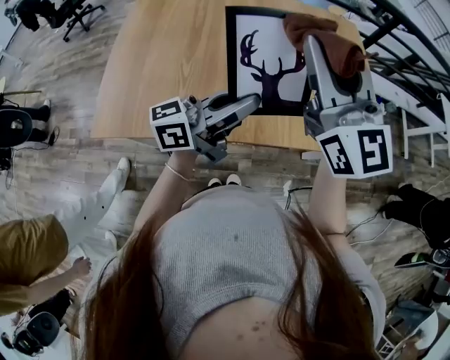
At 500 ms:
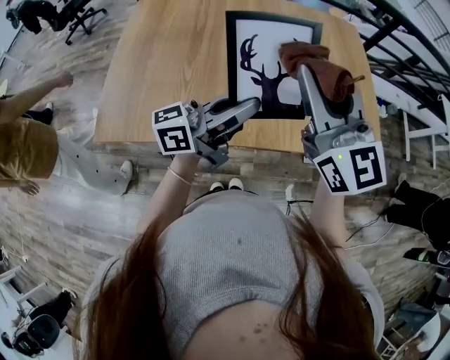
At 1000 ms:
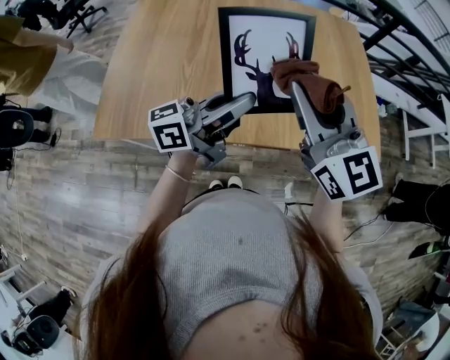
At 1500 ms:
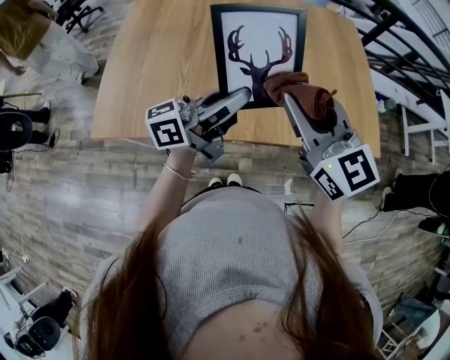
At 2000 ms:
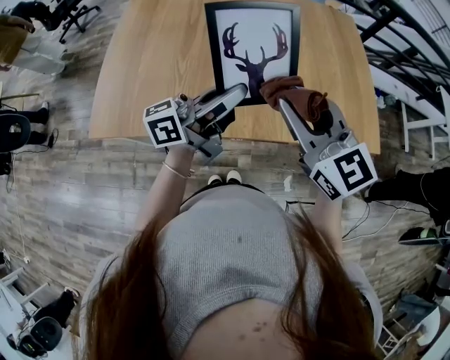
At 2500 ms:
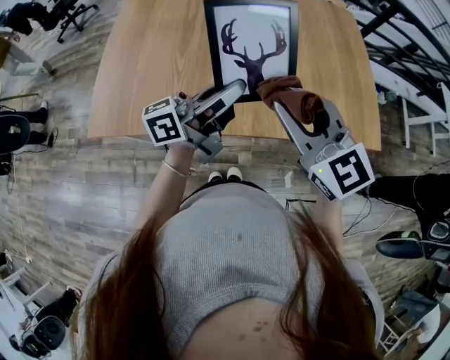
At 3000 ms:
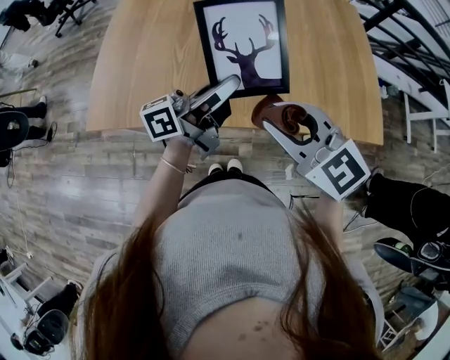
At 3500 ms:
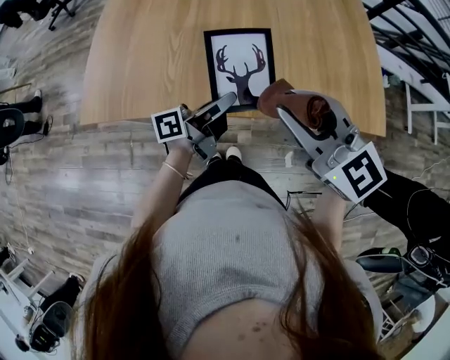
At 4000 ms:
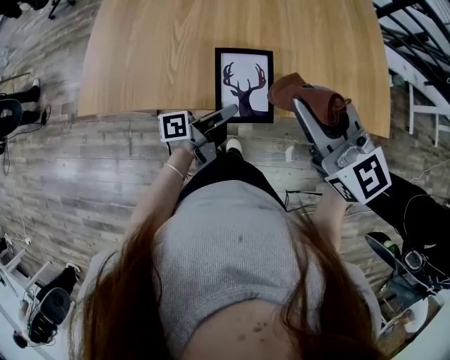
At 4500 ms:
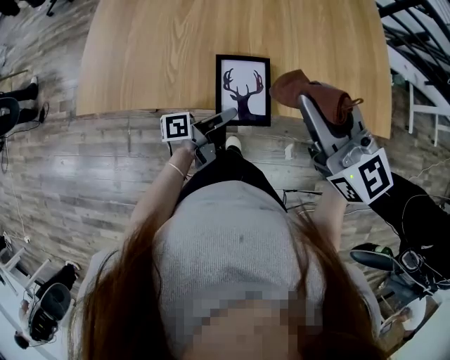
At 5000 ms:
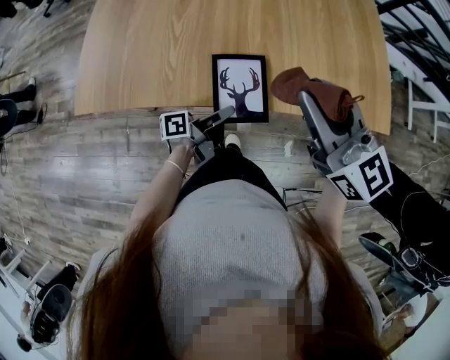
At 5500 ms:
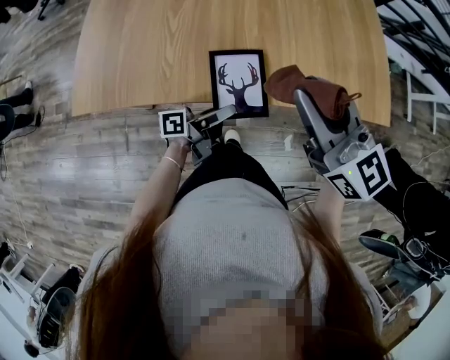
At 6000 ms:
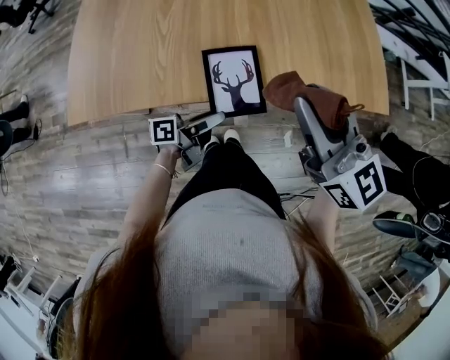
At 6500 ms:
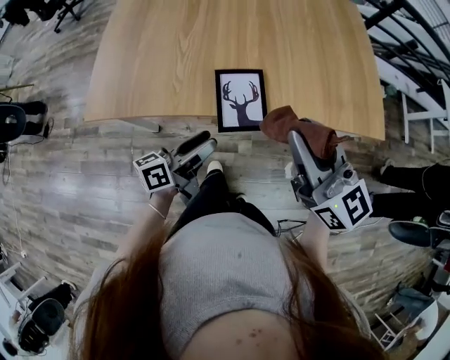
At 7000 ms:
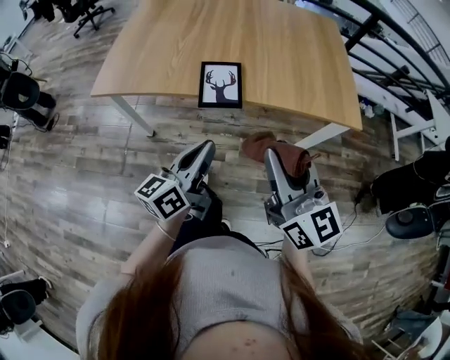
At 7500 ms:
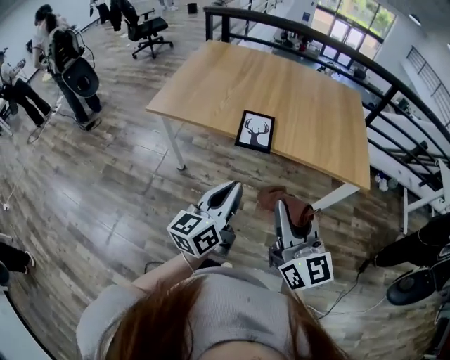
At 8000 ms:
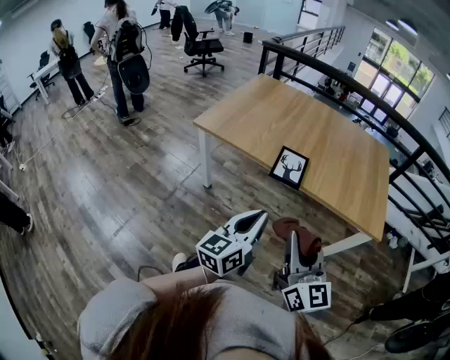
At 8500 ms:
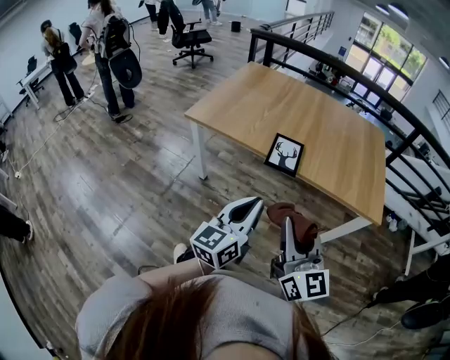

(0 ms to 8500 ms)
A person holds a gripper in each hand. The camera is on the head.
0 ms - 2000 ms: The right gripper travels downward and backward by approximately 15 cm, and changes its angle by approximately 30 degrees.
2000 ms - 4000 ms: The left gripper moves downward, some 20 cm, and turns by approximately 40 degrees.
4000 ms - 6500 ms: The left gripper heads backward and to the left, covering some 10 cm, goes downward and returns, roughly 5 cm each way, changes its angle by roughly 30 degrees, and opens. The right gripper shifts about 5 cm backward.
6500 ms - 8500 ms: The left gripper is displaced backward and upward by approximately 35 cm, swivels about 50 degrees, and closes; the right gripper shifts about 30 cm backward.

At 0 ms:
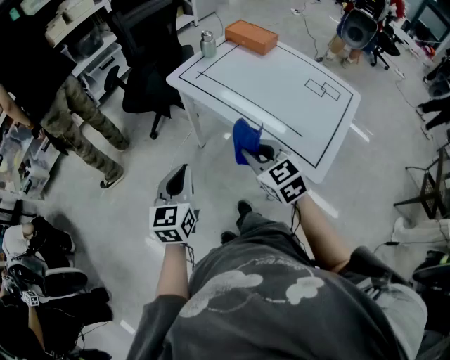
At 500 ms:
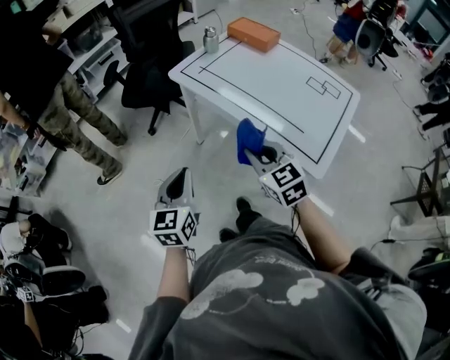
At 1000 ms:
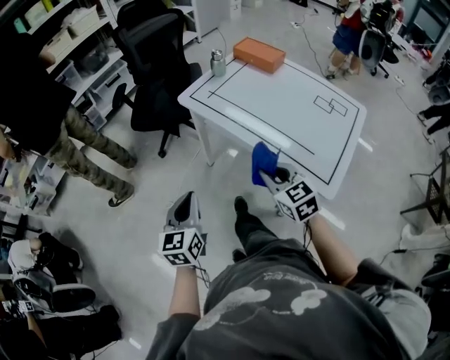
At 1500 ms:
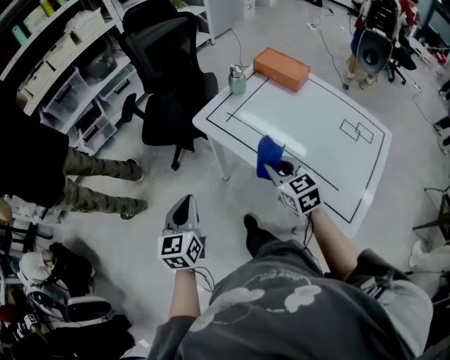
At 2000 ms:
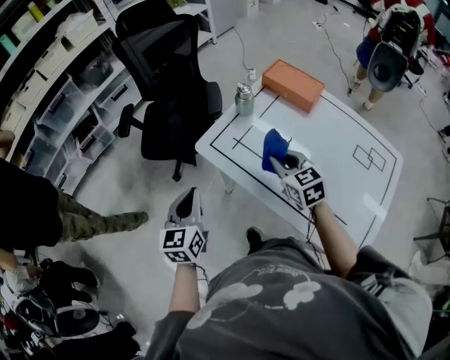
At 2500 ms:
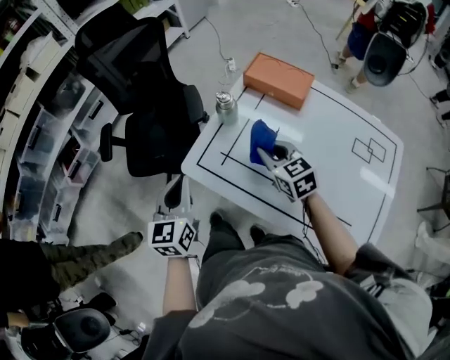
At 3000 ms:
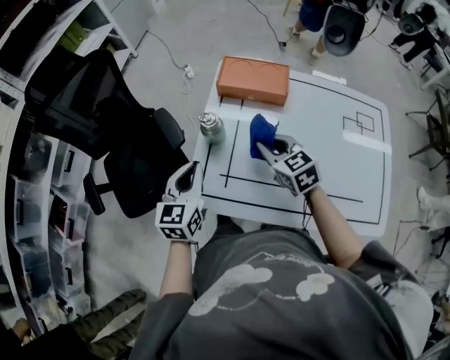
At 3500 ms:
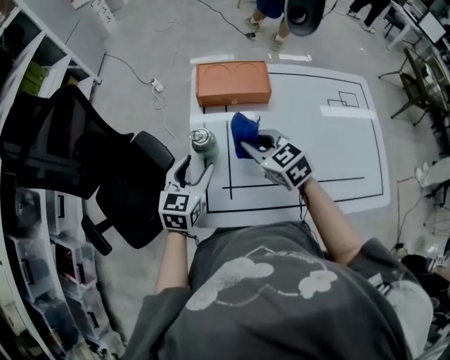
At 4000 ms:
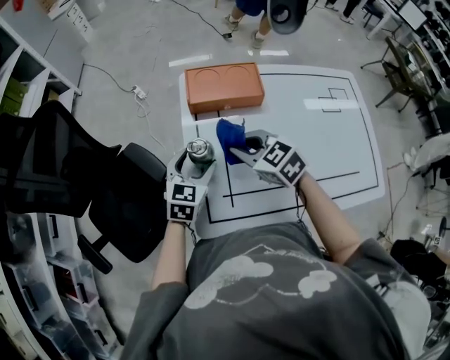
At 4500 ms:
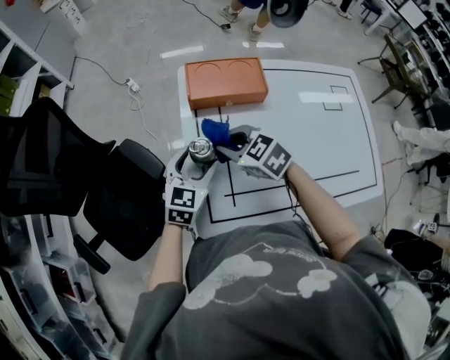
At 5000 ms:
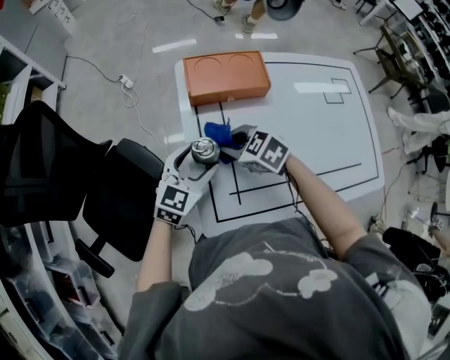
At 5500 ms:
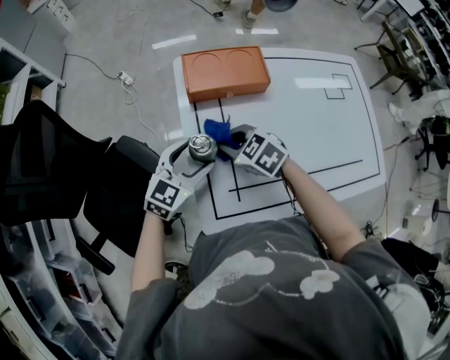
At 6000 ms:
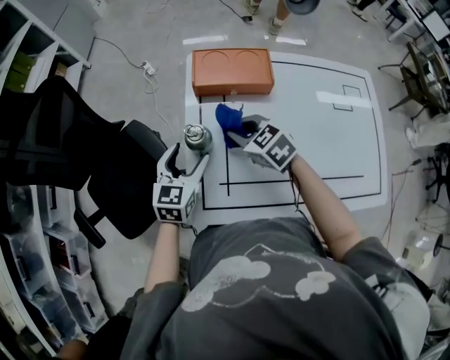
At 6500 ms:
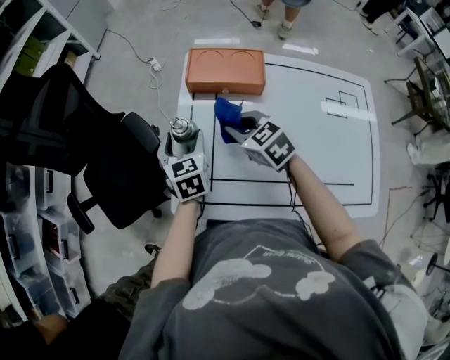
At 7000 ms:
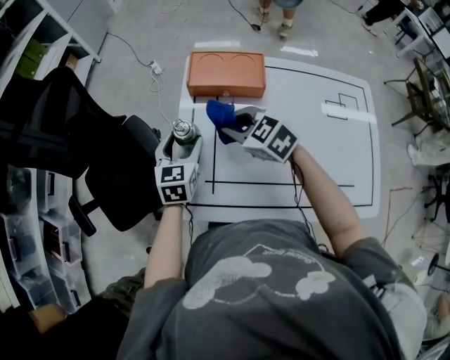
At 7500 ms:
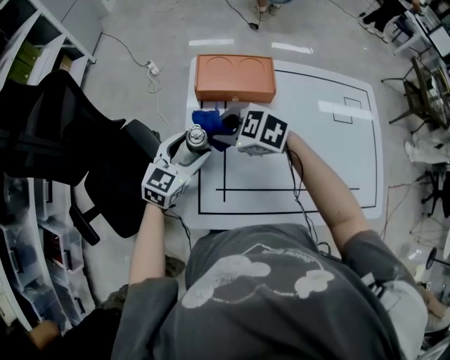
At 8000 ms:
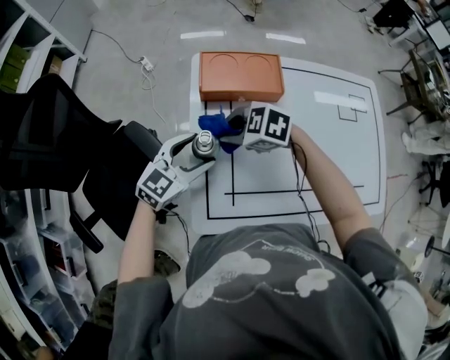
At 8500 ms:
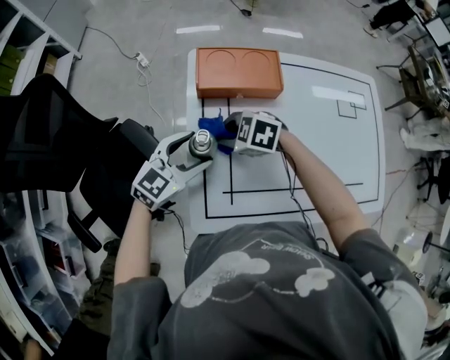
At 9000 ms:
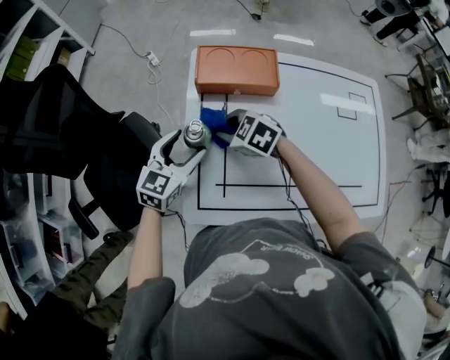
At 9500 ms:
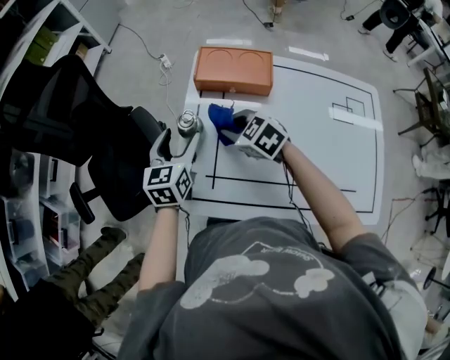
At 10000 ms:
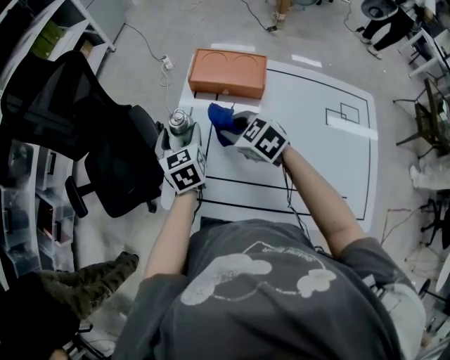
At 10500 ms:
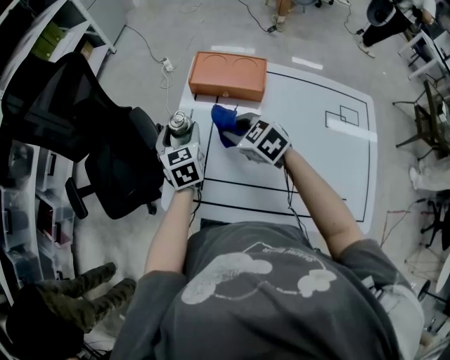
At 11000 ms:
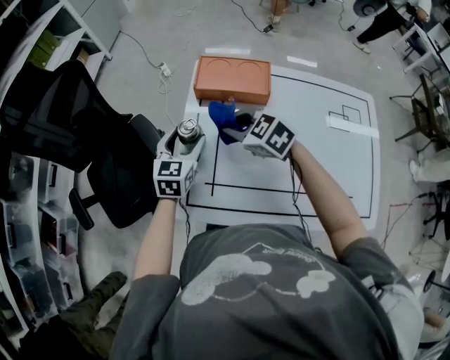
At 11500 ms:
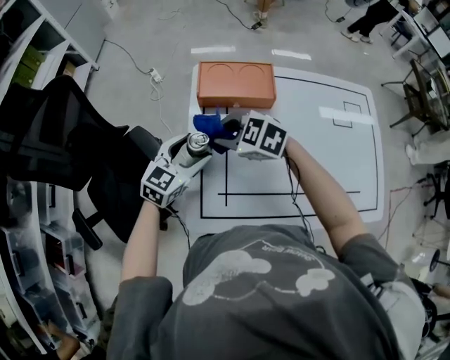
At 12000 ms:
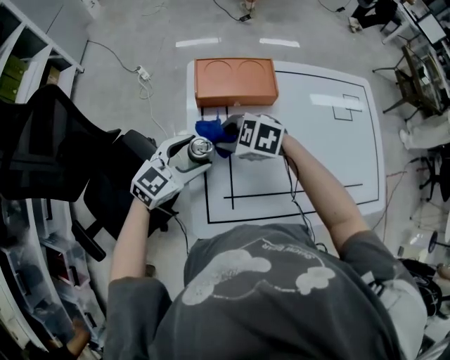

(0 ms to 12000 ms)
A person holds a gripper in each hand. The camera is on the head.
0 ms - 2000 ms: The grippers both shift forward by about 30 cm.
2000 ms - 4000 ms: The right gripper shifts by some 20 cm, and turns by approximately 20 degrees. Meanwhile the left gripper moves some 40 cm, changes its angle by roughly 60 degrees, and opens.
6000 ms - 8000 ms: The left gripper changes its angle by approximately 30 degrees. Meanwhile the right gripper ends up about 5 cm from where it was, and swivels approximately 30 degrees.
8000 ms - 10000 ms: The right gripper moves some 10 cm, while the left gripper swivels about 70 degrees.
10000 ms - 12000 ms: The left gripper swivels some 80 degrees, while the right gripper shifts by approximately 10 cm.

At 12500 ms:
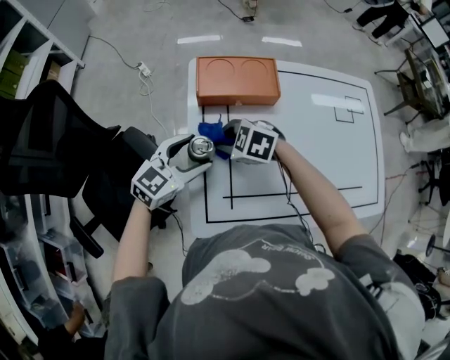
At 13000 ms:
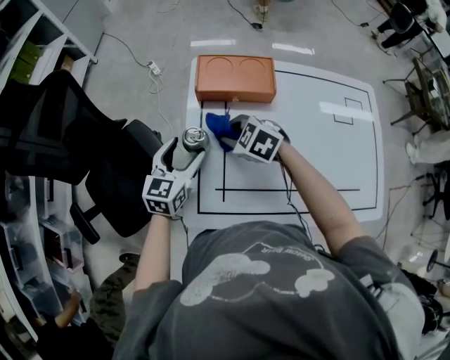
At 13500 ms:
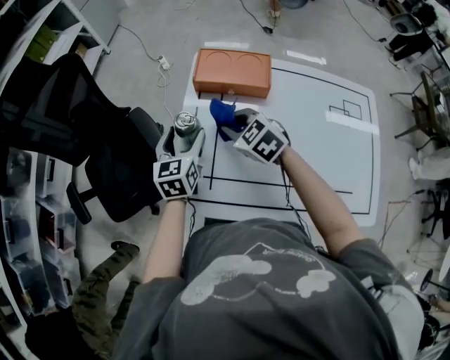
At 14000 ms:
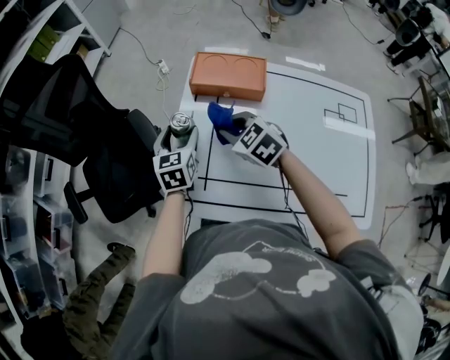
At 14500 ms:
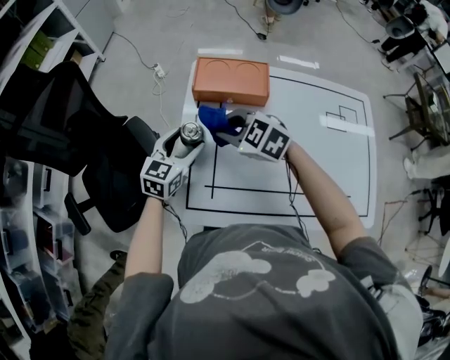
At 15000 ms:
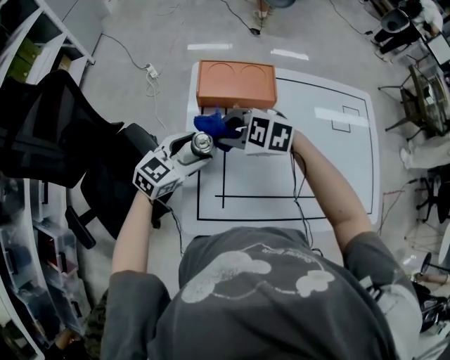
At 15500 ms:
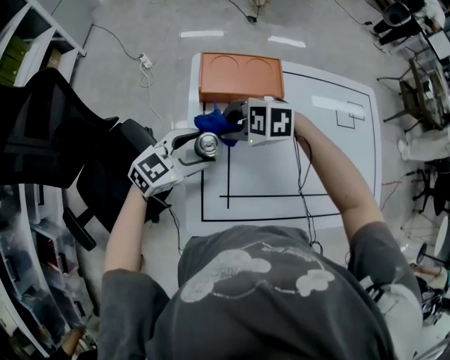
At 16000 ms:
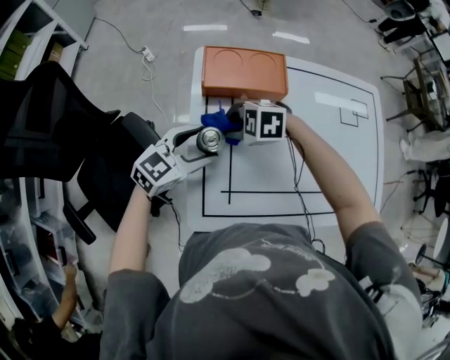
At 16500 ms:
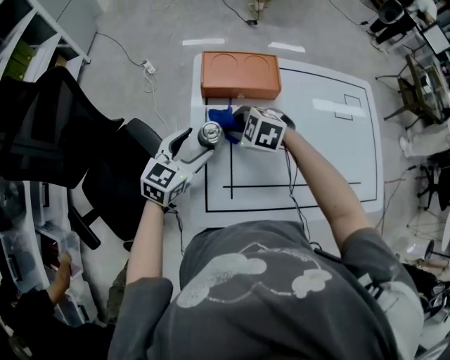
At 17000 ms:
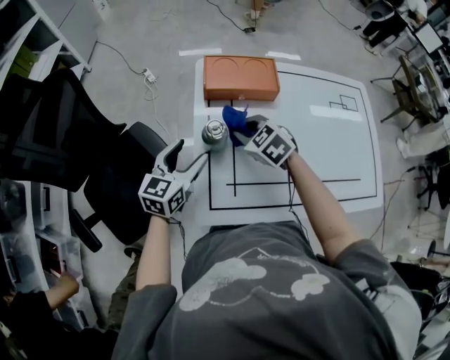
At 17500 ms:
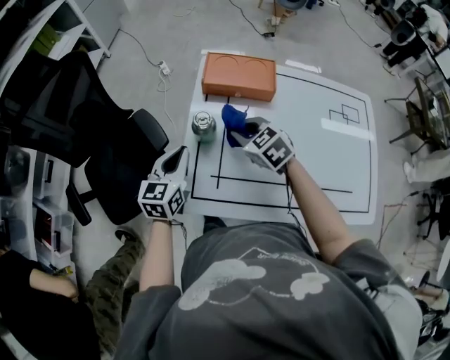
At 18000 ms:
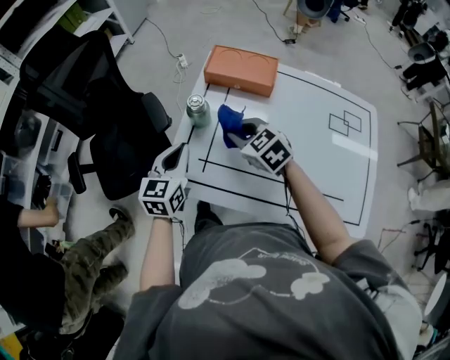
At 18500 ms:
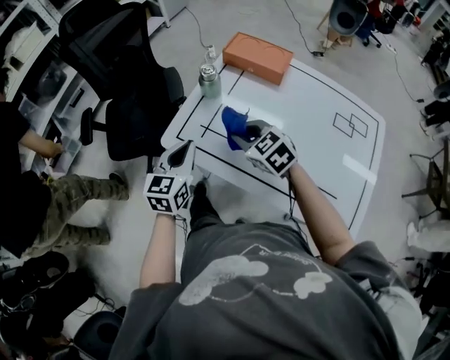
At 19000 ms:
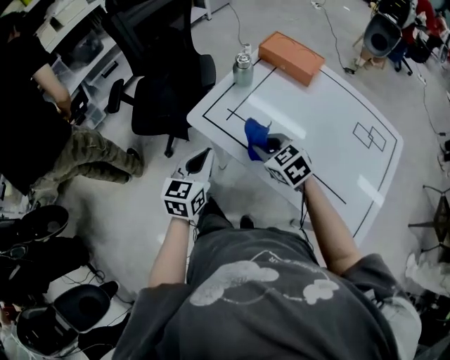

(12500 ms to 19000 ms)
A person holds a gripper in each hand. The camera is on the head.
12500 ms - 14500 ms: The right gripper shifts roughly 10 cm upward; the left gripper changes its angle by about 30 degrees.
14500 ms - 17000 ms: The left gripper changes place by about 5 cm; the right gripper moves downward, approximately 5 cm, and turns by approximately 30 degrees.
17000 ms - 19000 ms: The right gripper ends up some 25 cm from where it was, and swivels about 30 degrees. Meanwhile the left gripper ends up roughly 30 cm from where it was, swivels some 50 degrees, and closes its fingers.
